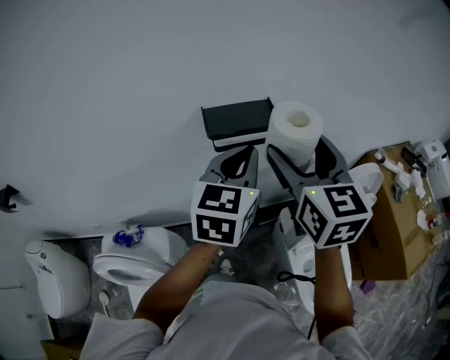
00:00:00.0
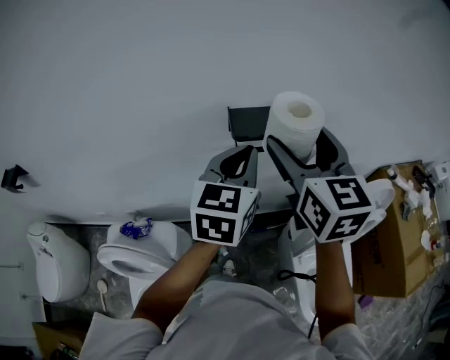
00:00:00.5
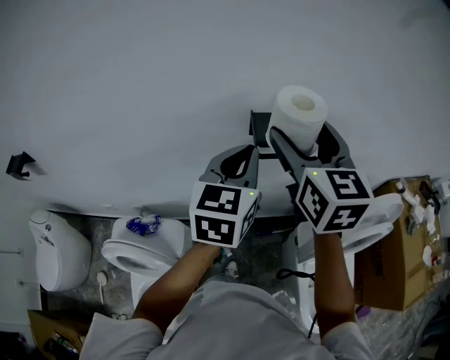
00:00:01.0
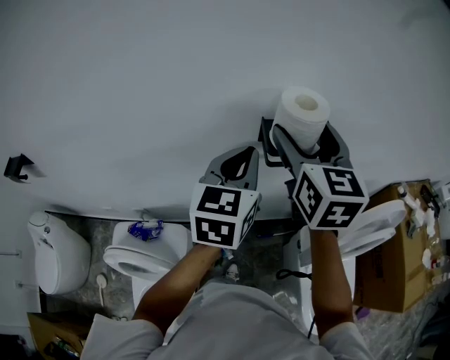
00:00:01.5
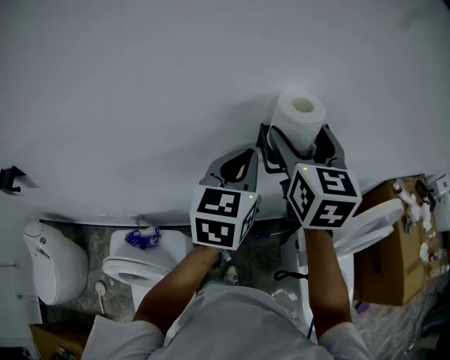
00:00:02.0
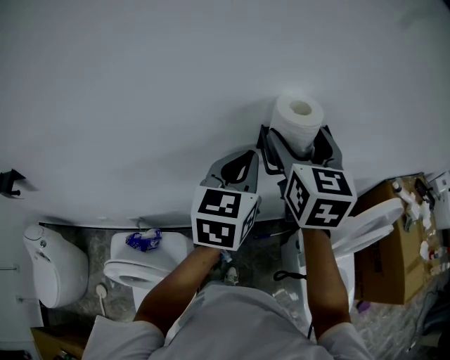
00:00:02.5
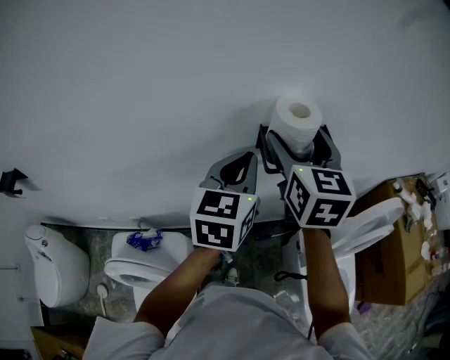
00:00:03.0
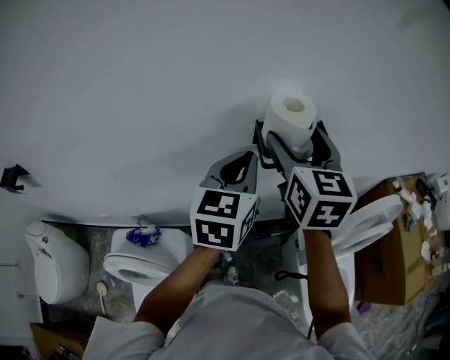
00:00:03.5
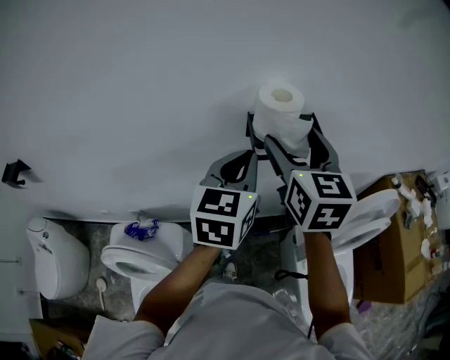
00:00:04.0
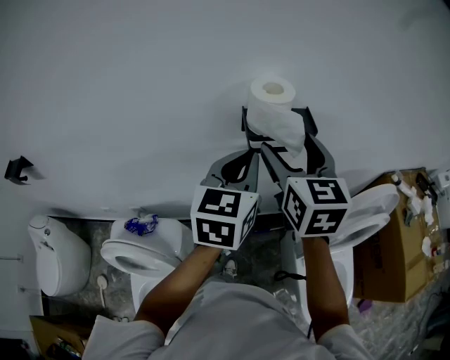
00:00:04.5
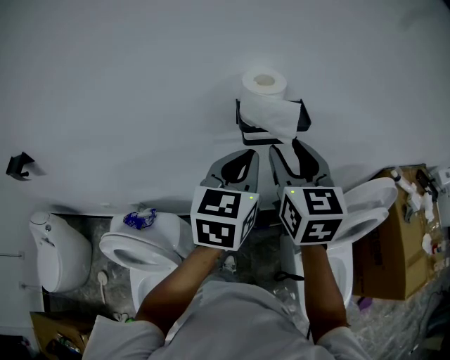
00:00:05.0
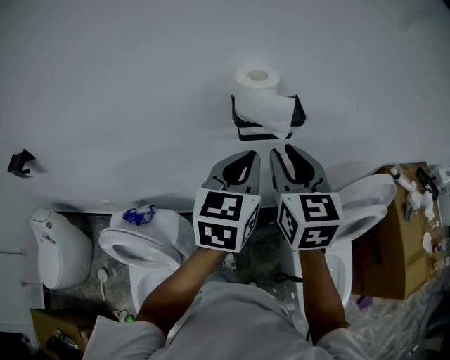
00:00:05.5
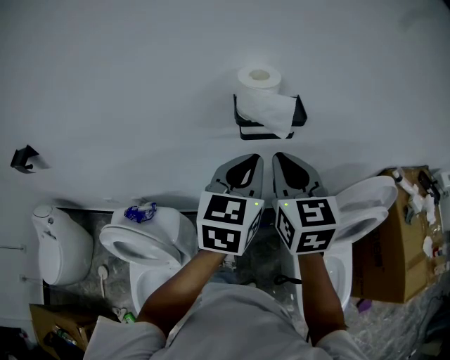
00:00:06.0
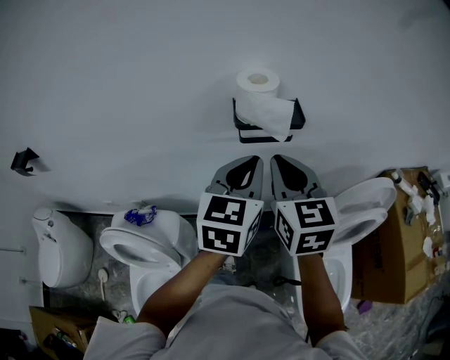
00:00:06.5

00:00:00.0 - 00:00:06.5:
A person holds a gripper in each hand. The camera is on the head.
00:00:00.0 - 00:00:02.0: The left gripper shifts roughly 15 cm to the left; the right gripper moves to the left and forward, approximately 15 cm.
00:00:02.0 - 00:00:04.5: The right gripper is displaced backward by some 5 cm. The left gripper moves backward and to the right, some 10 cm.
00:00:04.5 - 00:00:06.5: The right gripper travels backward by some 5 cm, and closes its fingers. The left gripper moves about 5 cm.

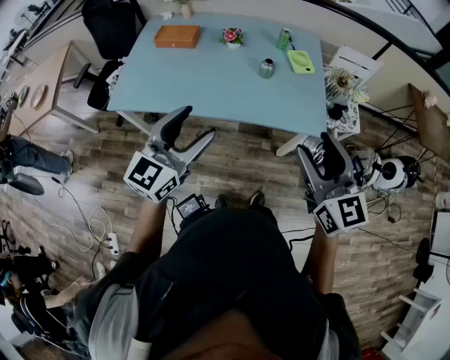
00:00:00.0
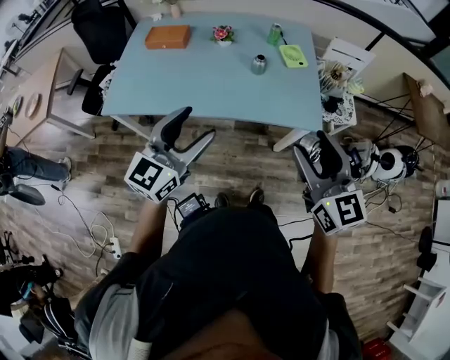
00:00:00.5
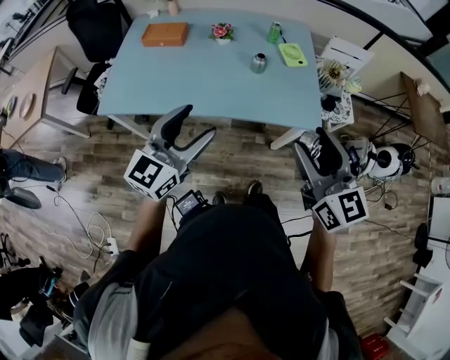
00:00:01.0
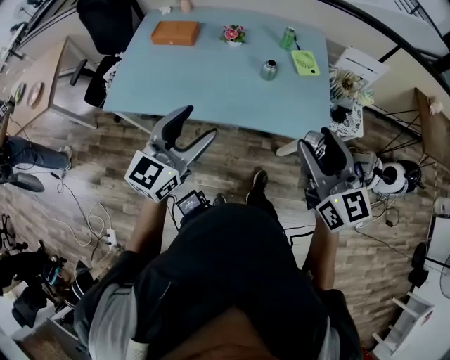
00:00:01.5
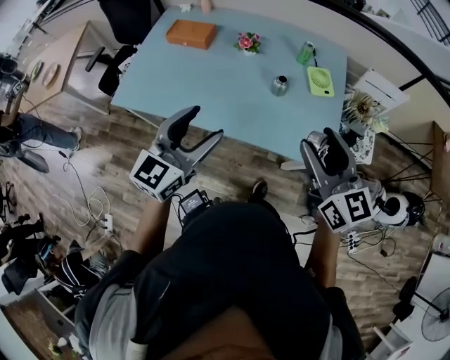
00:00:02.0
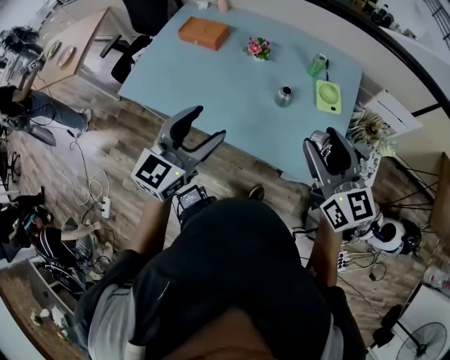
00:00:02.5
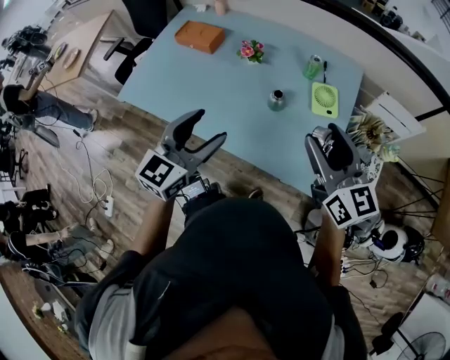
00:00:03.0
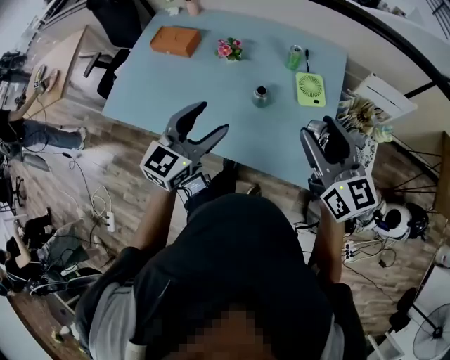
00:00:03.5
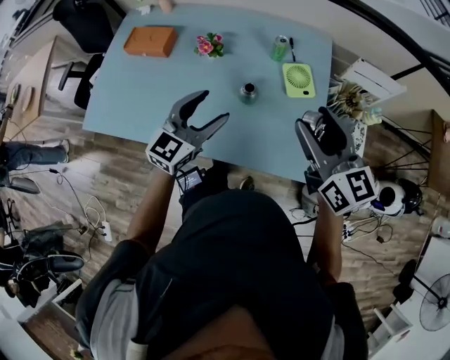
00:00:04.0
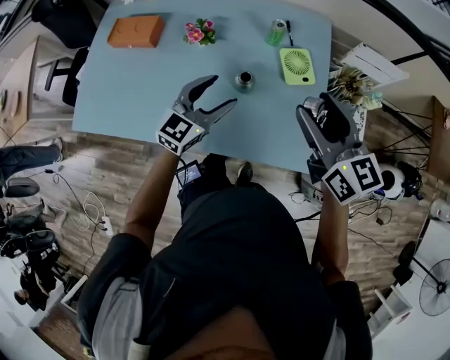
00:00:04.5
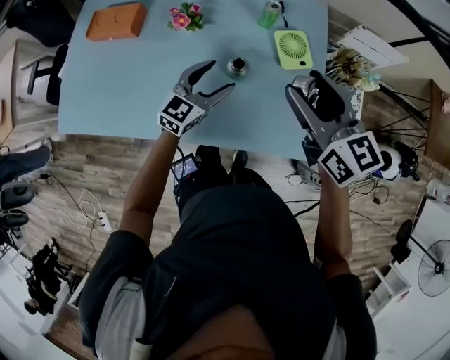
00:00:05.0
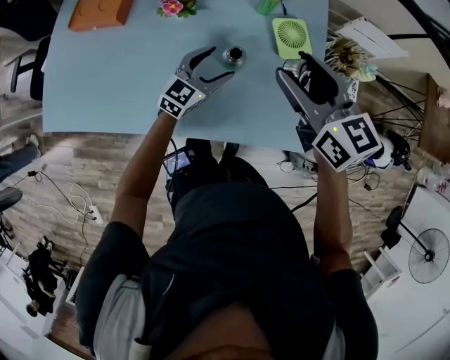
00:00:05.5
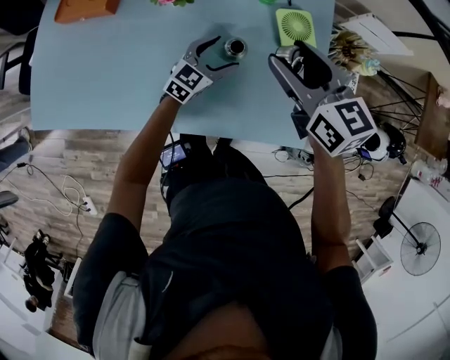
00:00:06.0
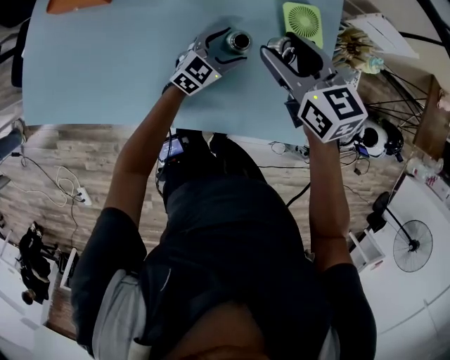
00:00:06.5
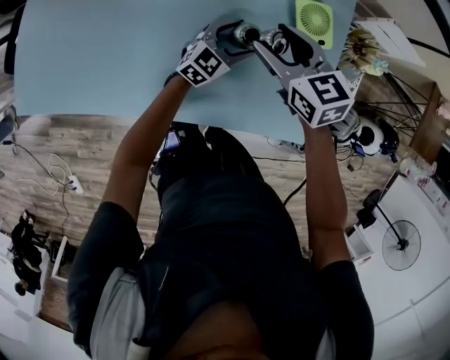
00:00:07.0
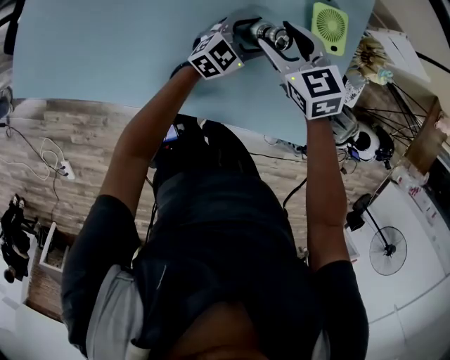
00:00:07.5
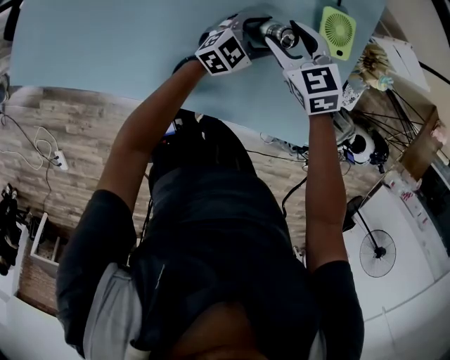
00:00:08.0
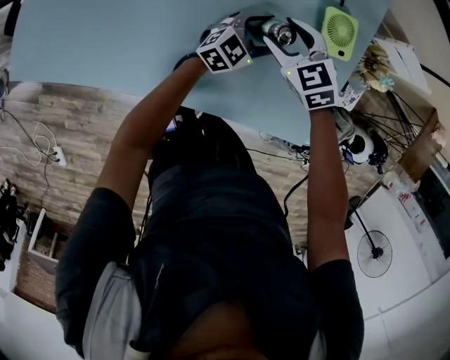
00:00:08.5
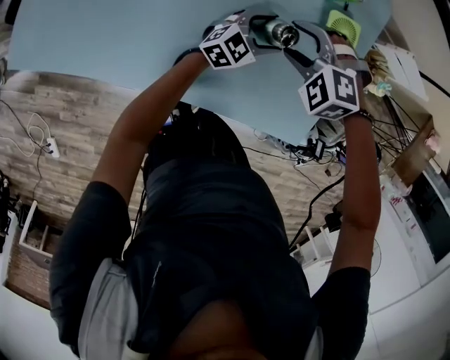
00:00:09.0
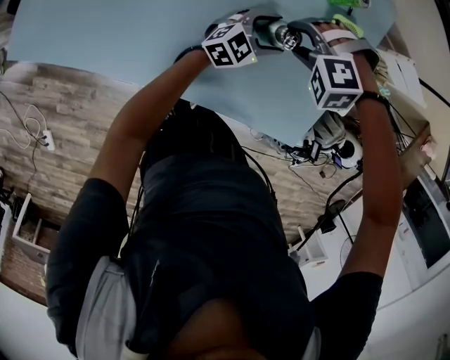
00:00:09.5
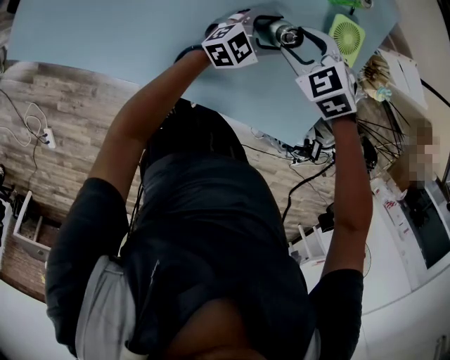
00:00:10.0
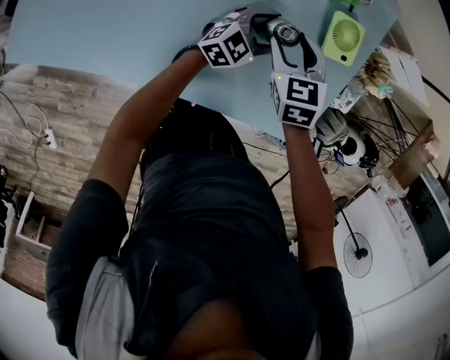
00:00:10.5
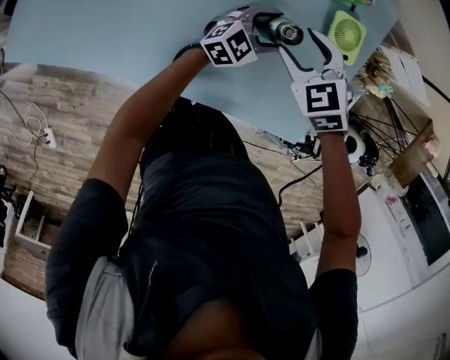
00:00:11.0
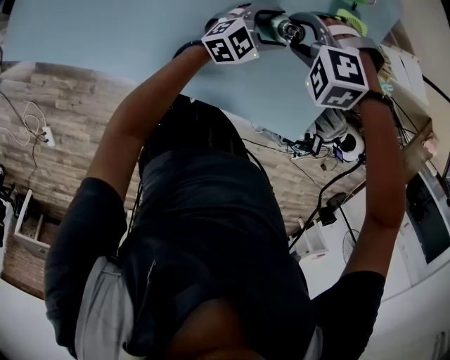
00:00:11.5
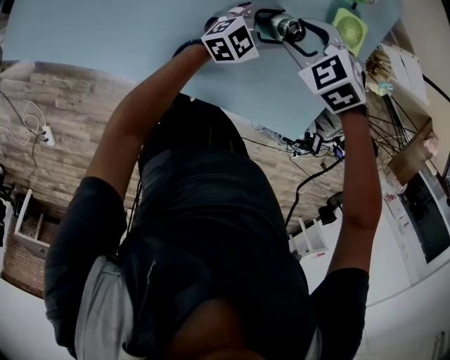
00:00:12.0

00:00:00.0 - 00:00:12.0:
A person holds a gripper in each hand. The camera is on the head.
00:00:00.0 - 00:00:02.0: Both grippers move forward, approximately 15 cm.
00:00:02.0 - 00:00:04.0: The left gripper is displaced forward, to the right and downward by approximately 25 cm; the right gripper moves forward and to the right, some 20 cm.
00:00:04.0 - 00:00:06.0: The right gripper is displaced downward, forward and to the left by some 20 cm, while the left gripper is displaced downward and forward by some 30 cm.
00:00:06.0 - 00:00:08.0: The right gripper moves downward, approximately 20 cm, and rotates roughly 30 degrees.
00:00:08.0 - 00:00:10.0: The right gripper rotates about 30 degrees.

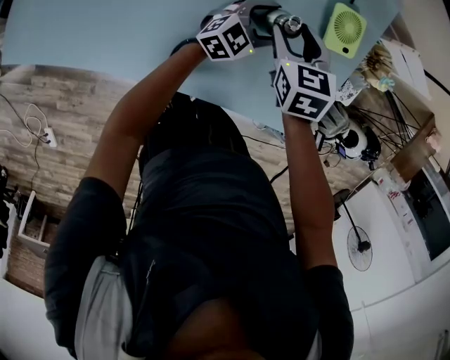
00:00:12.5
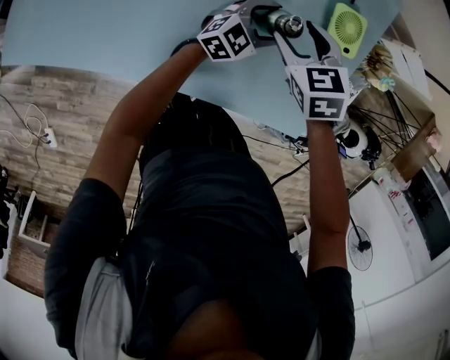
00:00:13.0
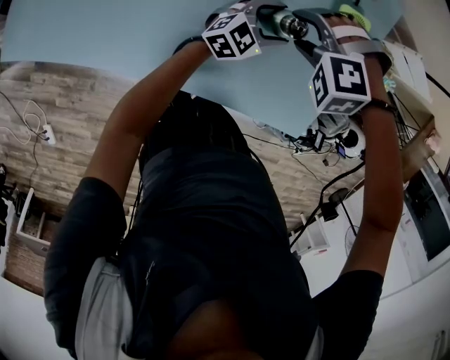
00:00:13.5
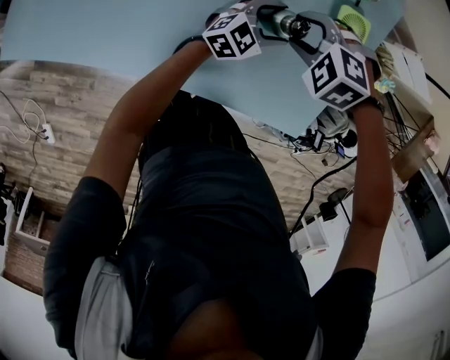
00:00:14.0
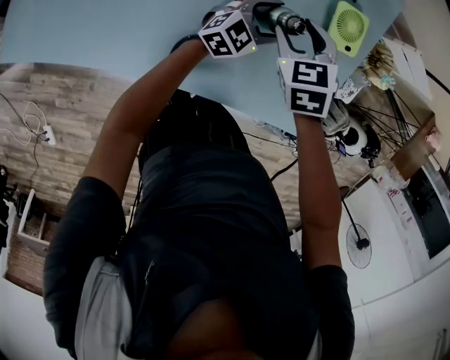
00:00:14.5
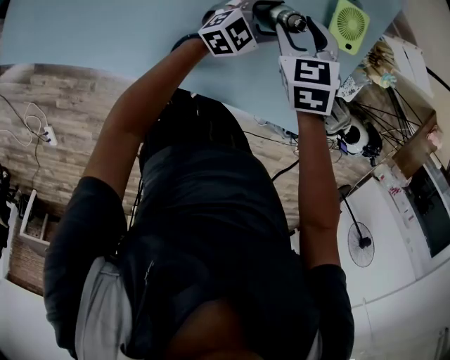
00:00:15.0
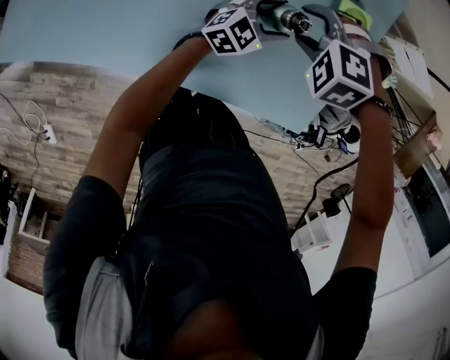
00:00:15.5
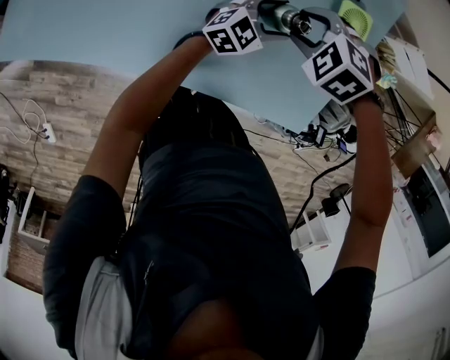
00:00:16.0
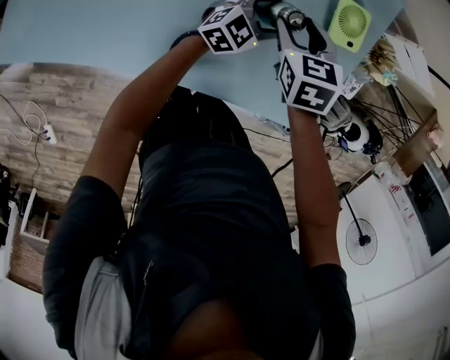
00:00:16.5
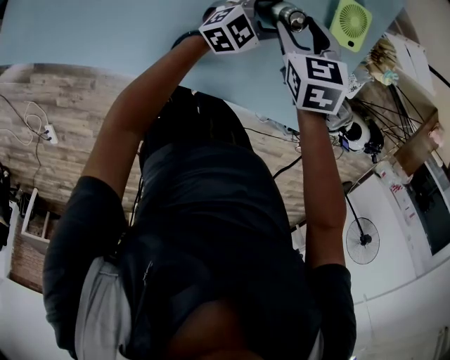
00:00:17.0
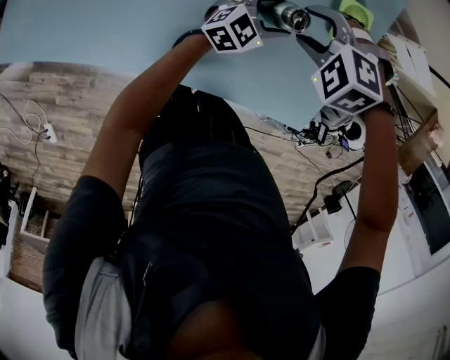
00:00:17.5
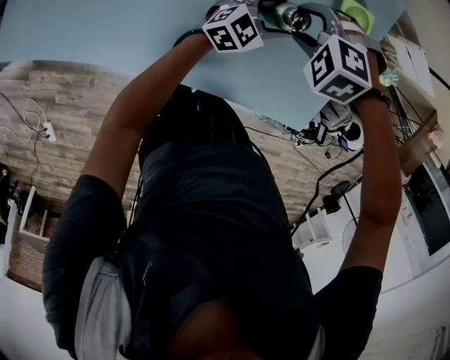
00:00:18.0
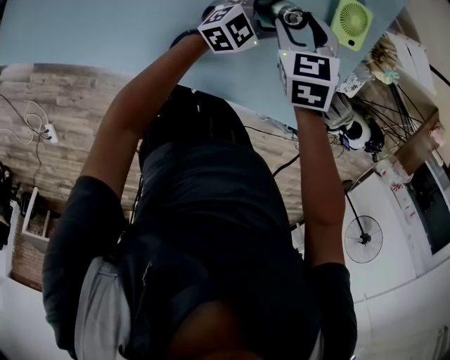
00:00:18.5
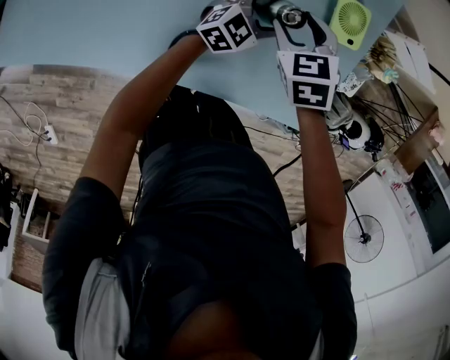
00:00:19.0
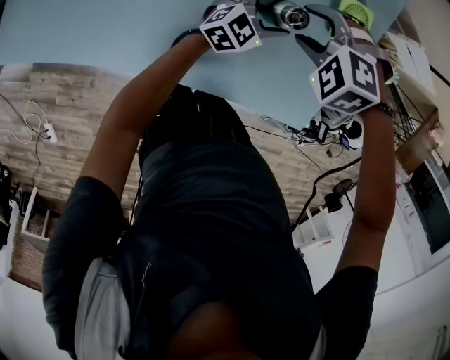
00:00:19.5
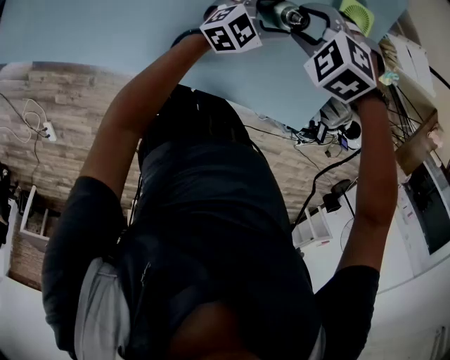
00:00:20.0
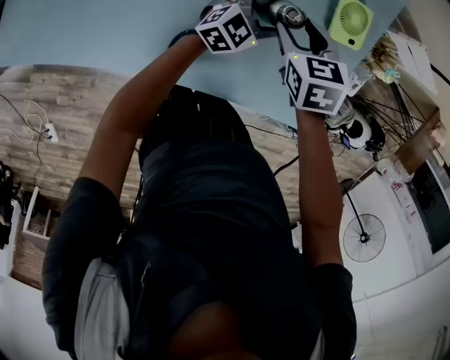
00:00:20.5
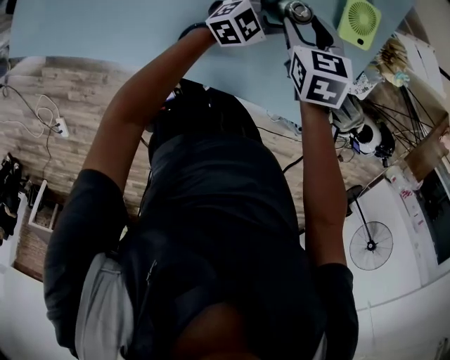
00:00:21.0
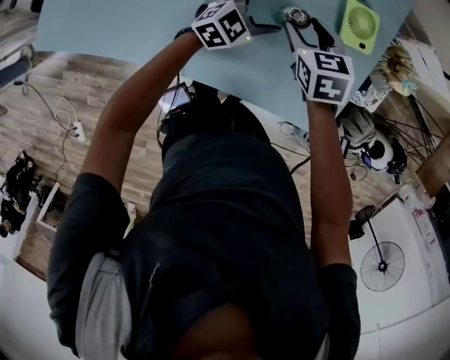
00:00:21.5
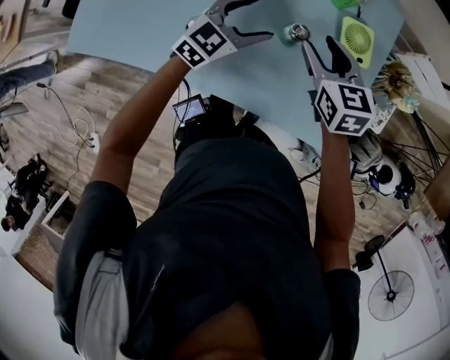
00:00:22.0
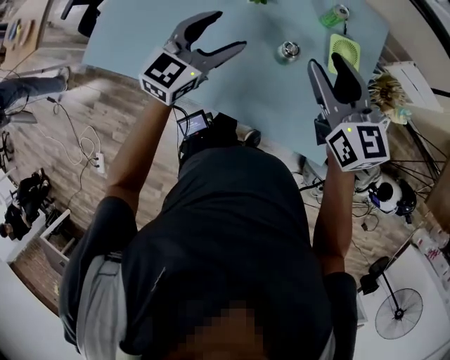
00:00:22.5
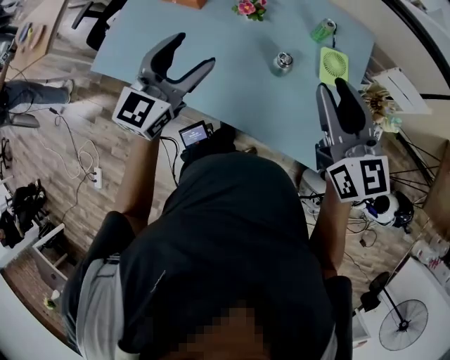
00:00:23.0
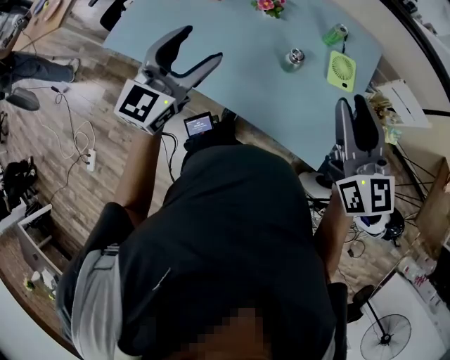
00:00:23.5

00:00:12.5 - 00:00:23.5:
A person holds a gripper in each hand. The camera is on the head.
00:00:14.5 - 00:00:16.0: The right gripper rolls counterclockwise, seen from behind, by approximately 40 degrees.
00:00:20.0 - 00:00:21.5: The right gripper twists roughly 60 degrees clockwise, seen from behind. The left gripper ends up approximately 5 cm from where it was.
00:00:21.5 - 00:00:23.5: The right gripper shifts roughly 40 cm upward and backward, and angles its fingers upward, by about 40 degrees. Meanwhile the left gripper goes approximately 40 cm upward, to the left and backward, and rotates roughly 50 degrees.
